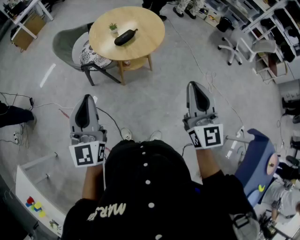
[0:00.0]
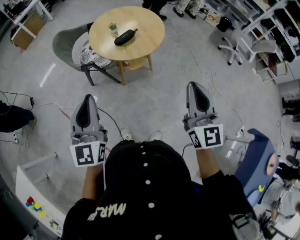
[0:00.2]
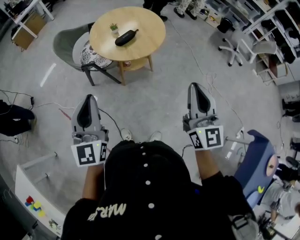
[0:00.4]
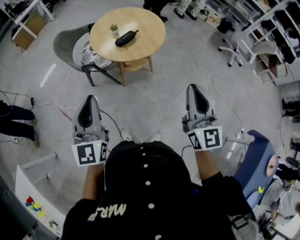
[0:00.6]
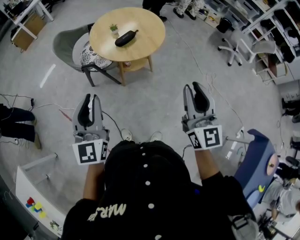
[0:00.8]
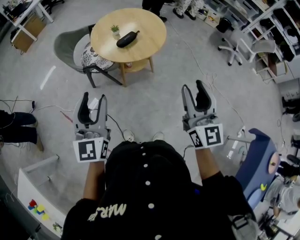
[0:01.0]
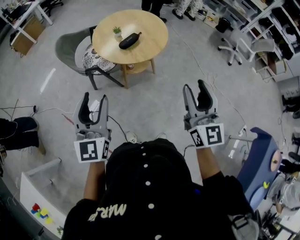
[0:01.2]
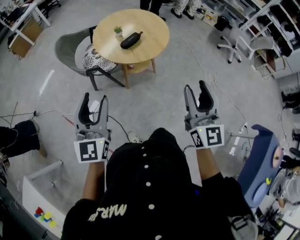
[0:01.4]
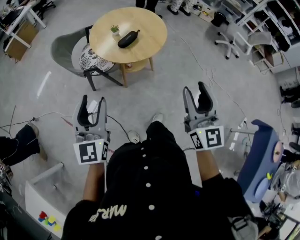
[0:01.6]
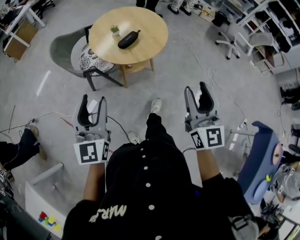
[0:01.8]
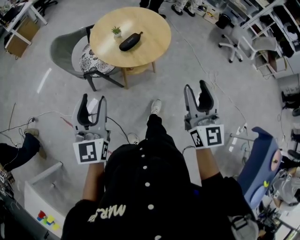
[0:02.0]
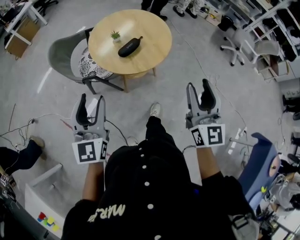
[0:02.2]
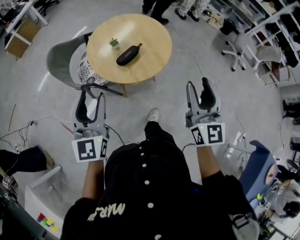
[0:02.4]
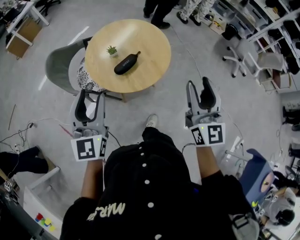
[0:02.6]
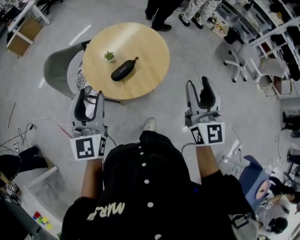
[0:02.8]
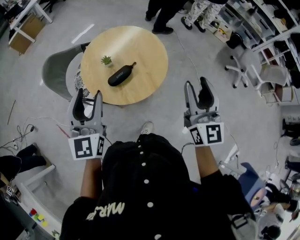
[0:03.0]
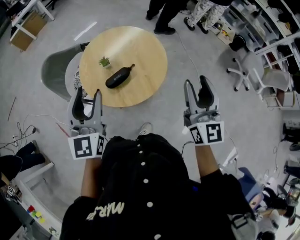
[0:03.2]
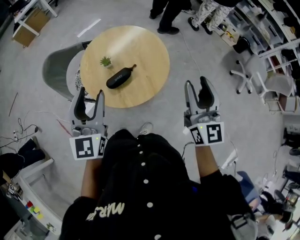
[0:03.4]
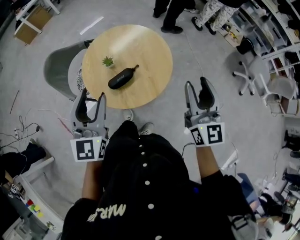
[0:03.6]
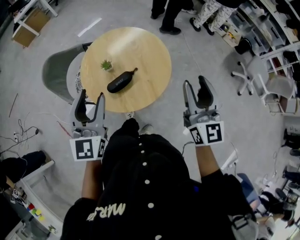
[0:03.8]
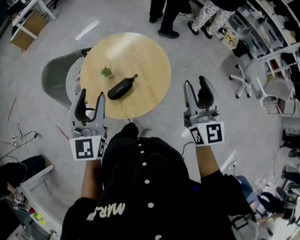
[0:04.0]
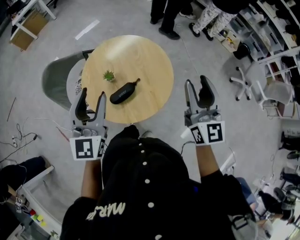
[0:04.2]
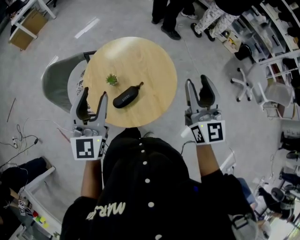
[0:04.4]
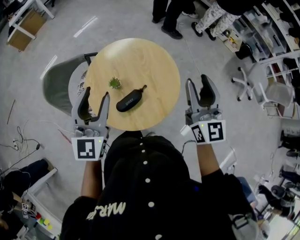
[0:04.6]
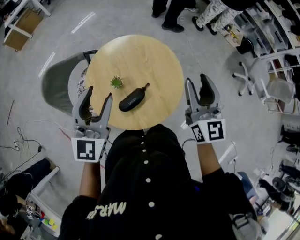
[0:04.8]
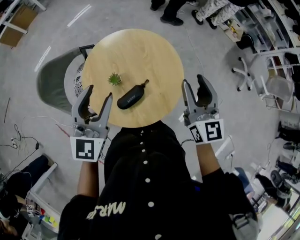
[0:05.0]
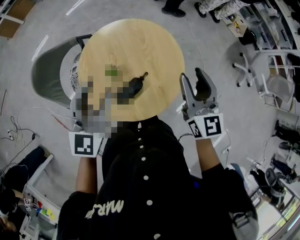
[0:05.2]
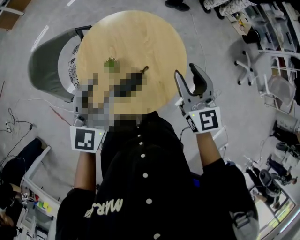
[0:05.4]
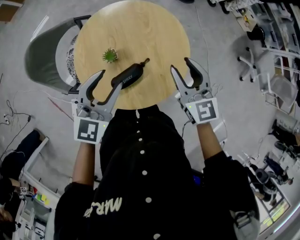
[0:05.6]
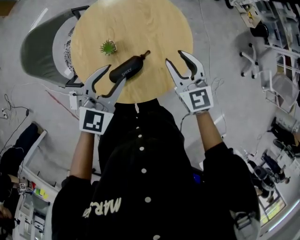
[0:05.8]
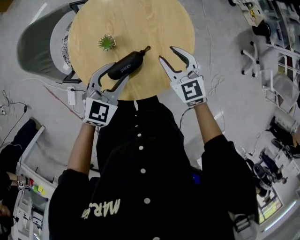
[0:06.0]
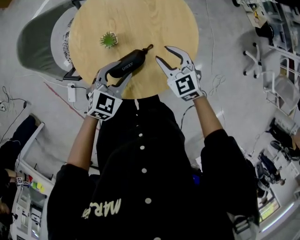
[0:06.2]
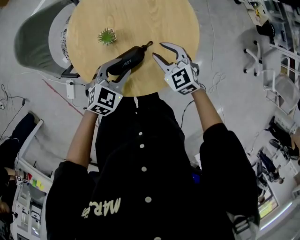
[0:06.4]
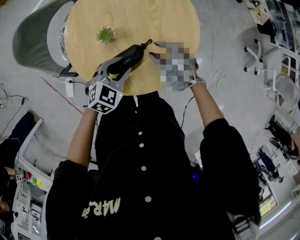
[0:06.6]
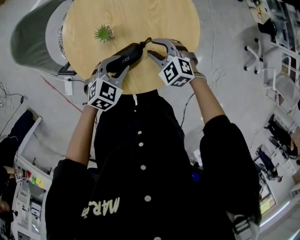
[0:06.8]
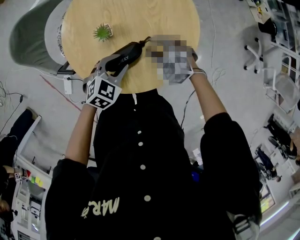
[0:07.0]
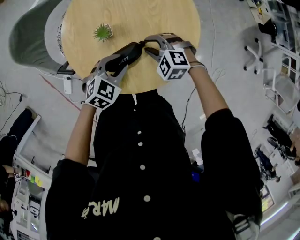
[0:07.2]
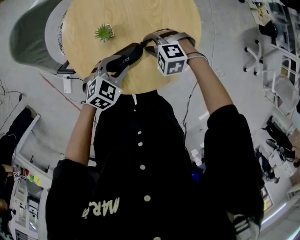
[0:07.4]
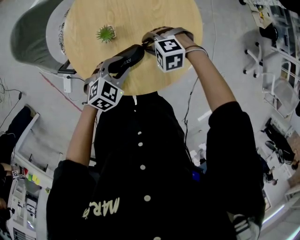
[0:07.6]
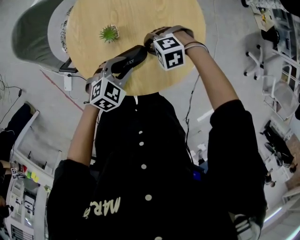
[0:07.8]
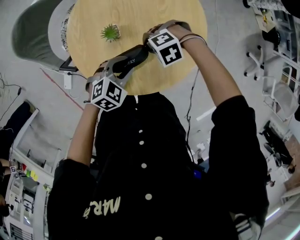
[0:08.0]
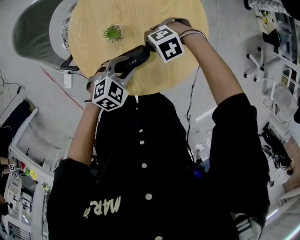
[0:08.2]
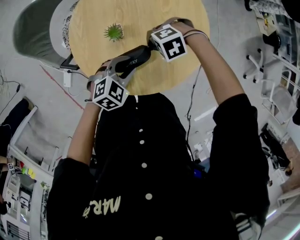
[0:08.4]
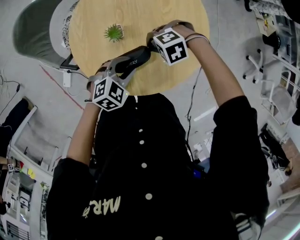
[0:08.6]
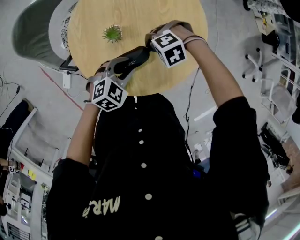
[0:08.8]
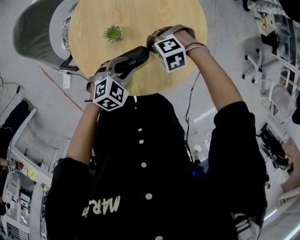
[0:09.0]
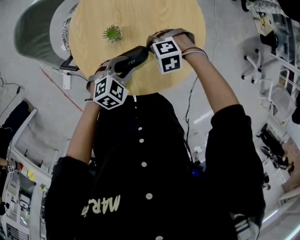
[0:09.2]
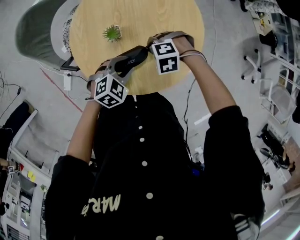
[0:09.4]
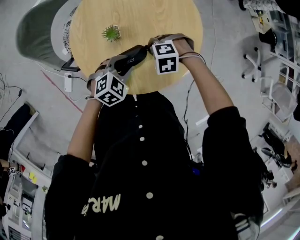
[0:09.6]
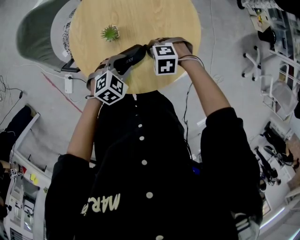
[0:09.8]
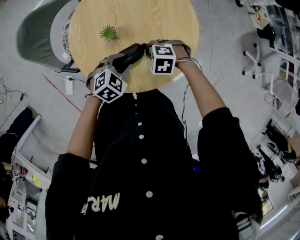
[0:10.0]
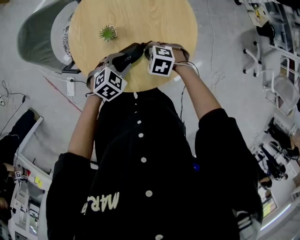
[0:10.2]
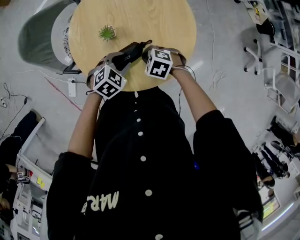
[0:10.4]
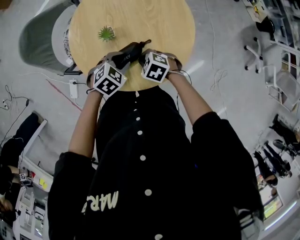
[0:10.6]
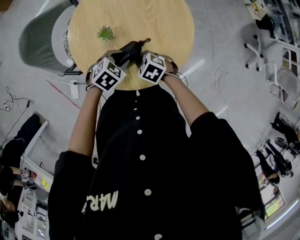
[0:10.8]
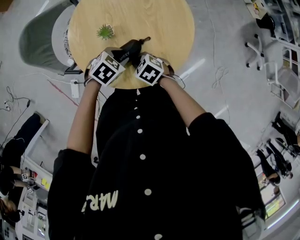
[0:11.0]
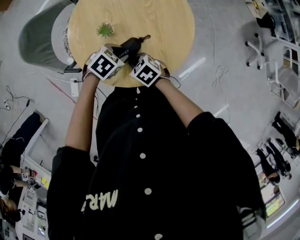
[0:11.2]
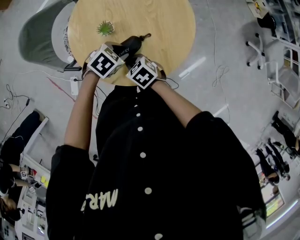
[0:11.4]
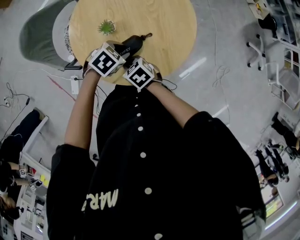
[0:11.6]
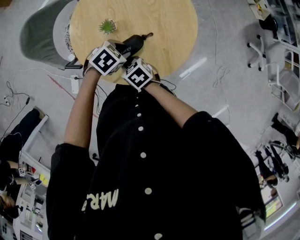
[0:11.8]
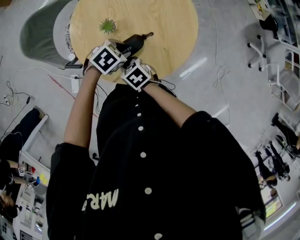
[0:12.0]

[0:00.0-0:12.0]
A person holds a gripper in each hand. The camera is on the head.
0.0 to 1.6 s: The grippers both shift to the left by some 5 cm. The right gripper opens up. The left gripper opens.
1.6 to 3.0 s: The two grippers go roughly 35 cm forward.
3.0 to 4.4 s: The two grippers go roughly 20 cm forward.
4.4 to 6.0 s: Both grippers move downward, some 30 cm. The right gripper points its fingers some 40 degrees further downward; the left gripper turns by about 40 degrees.
6.0 to 7.6 s: The grippers both shift downward by approximately 15 cm. The right gripper tilts its fingers some 30 degrees downward. Meanwhile the left gripper changes its angle by approximately 20 degrees.
7.6 to 9.0 s: The right gripper closes its fingers.
9.0 to 10.4 s: The right gripper shifts by about 5 cm, and rotates around the line of its fingers by roughly 40 degrees, clockwise from behind.
10.4 to 12.0 s: The right gripper moves approximately 10 cm, and changes its angle by approximately 40 degrees.

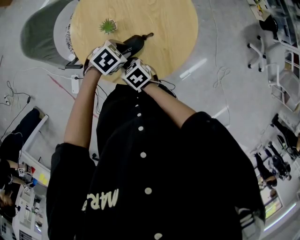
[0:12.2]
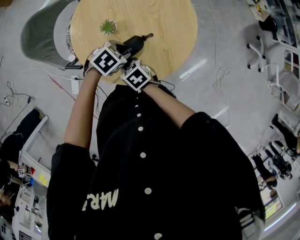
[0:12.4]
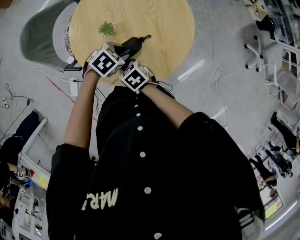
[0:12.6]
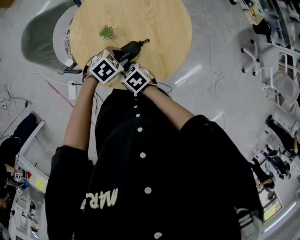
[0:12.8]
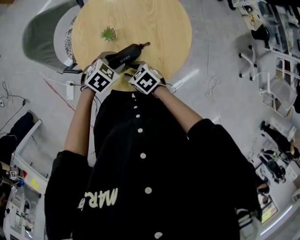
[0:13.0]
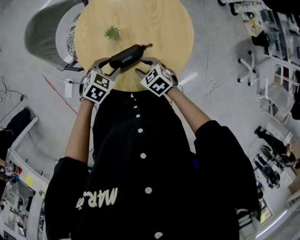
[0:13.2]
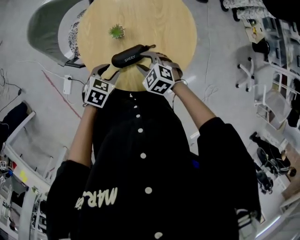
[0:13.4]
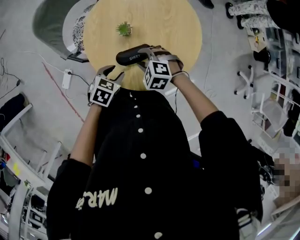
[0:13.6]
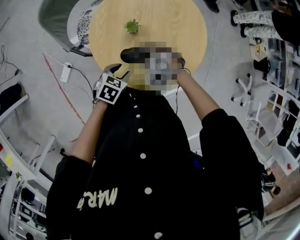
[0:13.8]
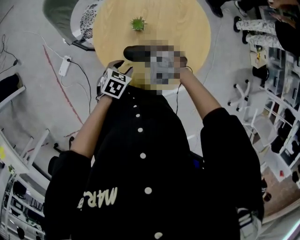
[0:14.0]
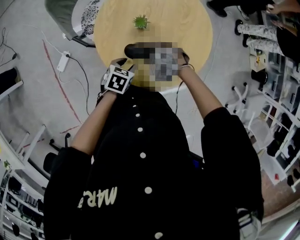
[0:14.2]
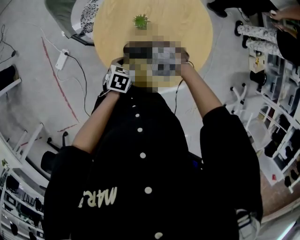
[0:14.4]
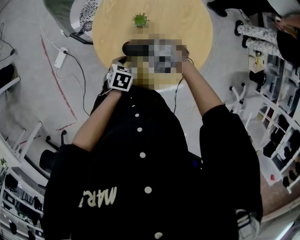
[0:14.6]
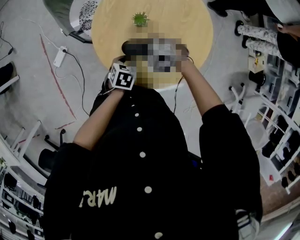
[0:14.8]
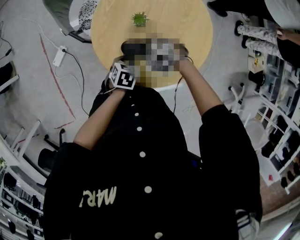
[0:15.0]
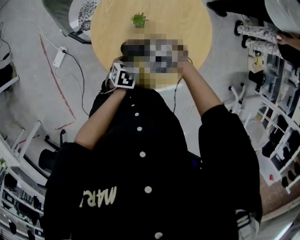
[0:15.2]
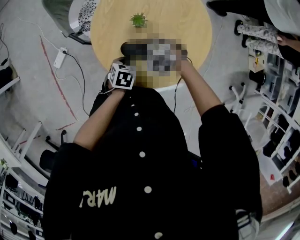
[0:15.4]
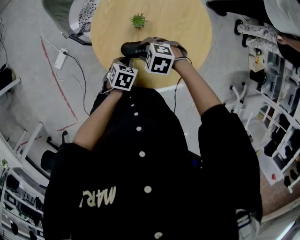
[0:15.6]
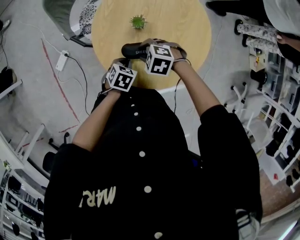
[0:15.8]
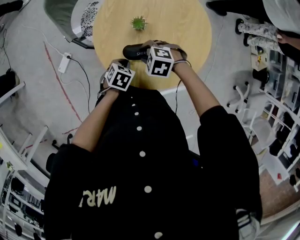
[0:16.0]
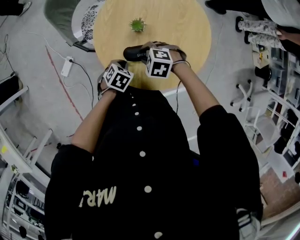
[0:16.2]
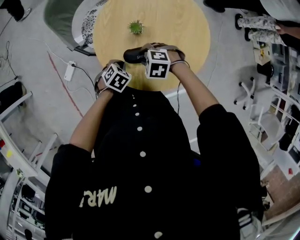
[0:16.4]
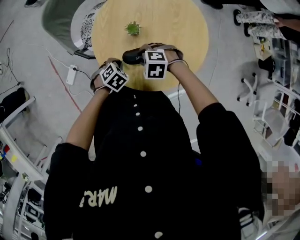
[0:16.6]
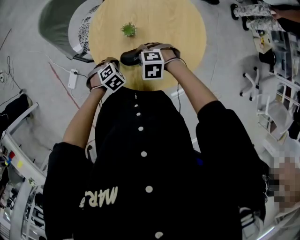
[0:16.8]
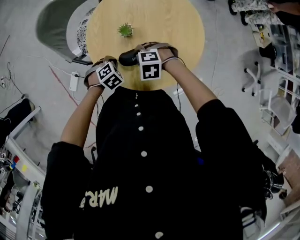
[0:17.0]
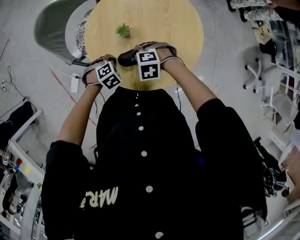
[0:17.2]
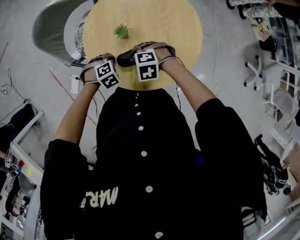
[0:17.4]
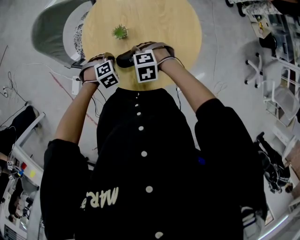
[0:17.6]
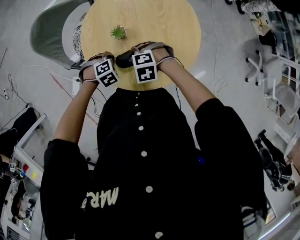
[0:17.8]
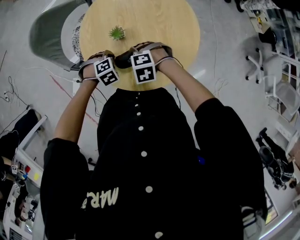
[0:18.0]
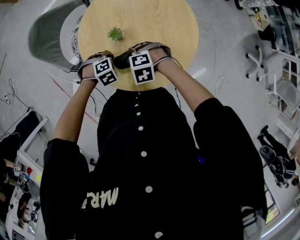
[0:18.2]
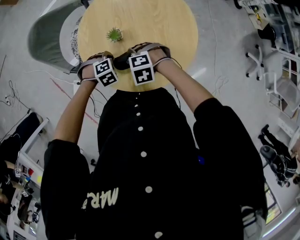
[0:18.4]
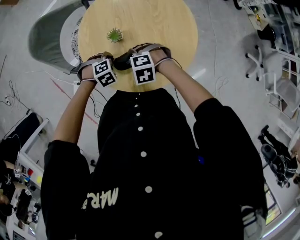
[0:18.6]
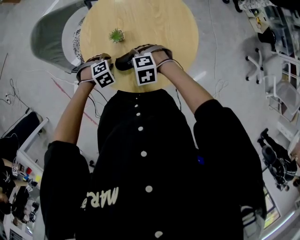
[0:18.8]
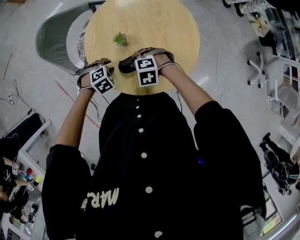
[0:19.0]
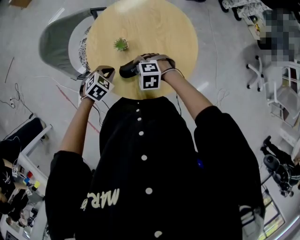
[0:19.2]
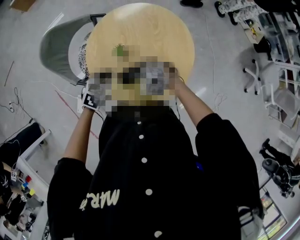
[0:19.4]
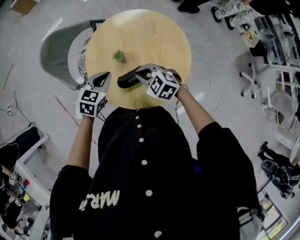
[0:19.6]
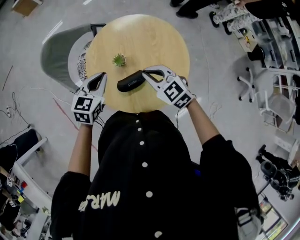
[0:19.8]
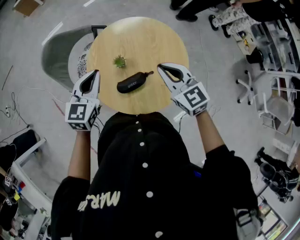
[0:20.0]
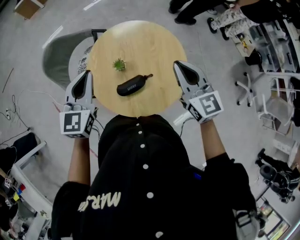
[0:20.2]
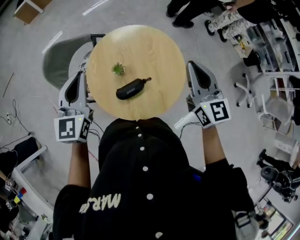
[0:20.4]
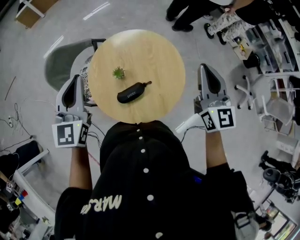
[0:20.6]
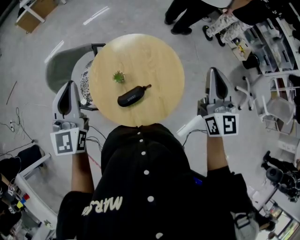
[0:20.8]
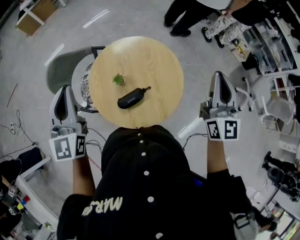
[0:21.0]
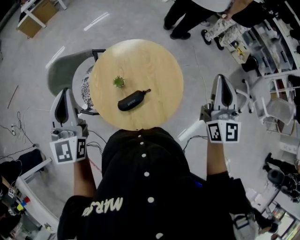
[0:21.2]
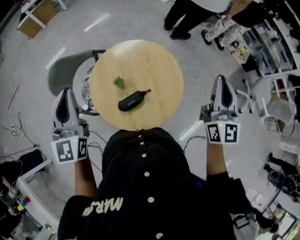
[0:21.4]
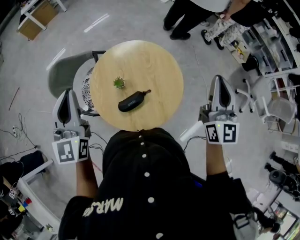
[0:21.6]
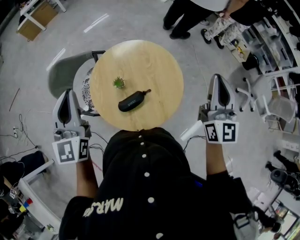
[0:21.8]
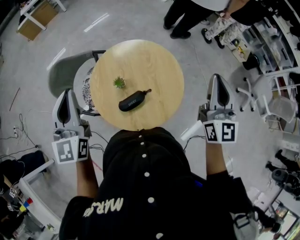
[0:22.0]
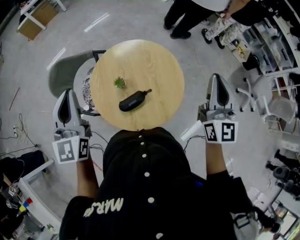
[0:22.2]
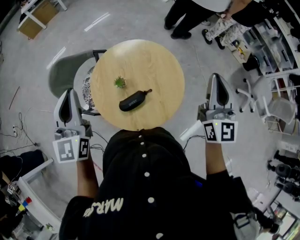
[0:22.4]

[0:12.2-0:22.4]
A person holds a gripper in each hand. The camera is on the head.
12.2 to 13.6 s: The right gripper shifts by approximately 10 cm, rolls counterclockwise, seen from behind, by some 60 degrees, and opens, while the left gripper moves approximately 10 cm, and rotates about 40 degrees.
13.6 to 15.2 s: The right gripper changes its angle by roughly 20 degrees. Meanwhile the left gripper shifts roughly 5 cm downward, rotates approximately 30 degrees, and closes its fingers.
15.2 to 16.6 s: The left gripper moves about 5 cm, and rotates around the line of its fingers by about 40 degrees, clockwise from behind.
16.6 to 18.0 s: The left gripper moves some 5 cm, and swivels approximately 40 degrees.
18.0 to 19.4 s: The right gripper moves upward, about 5 cm, rotates roughly 20 degrees, and closes up. Meanwhile the left gripper shifts some 10 cm upward, rotates some 40 degrees, and opens, then closes again.
19.4 to 21.0 s: The right gripper travels upward and to the right by roughly 50 cm, and tilts its fingers roughly 70 degrees upward. The left gripper moves upward, some 35 cm, and angles its fingers upward, by roughly 50 degrees.
21.0 to 22.4 s: There are only small adjustments of the grippers.

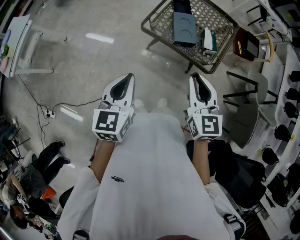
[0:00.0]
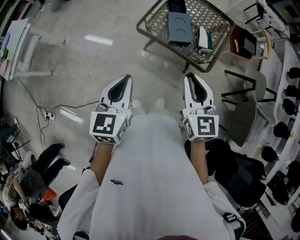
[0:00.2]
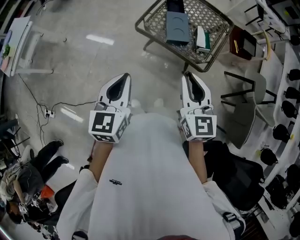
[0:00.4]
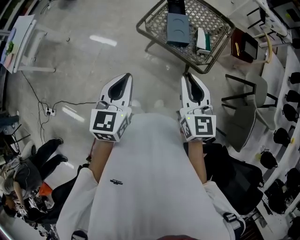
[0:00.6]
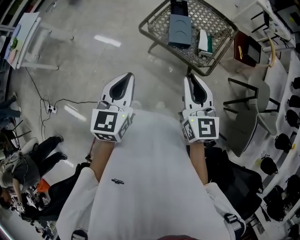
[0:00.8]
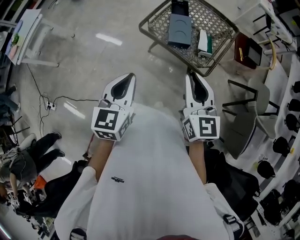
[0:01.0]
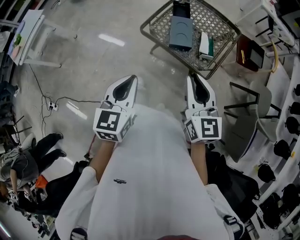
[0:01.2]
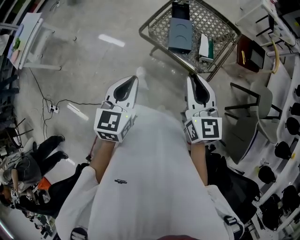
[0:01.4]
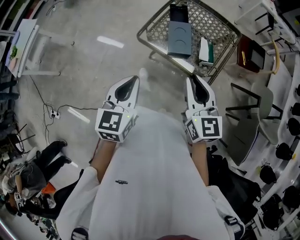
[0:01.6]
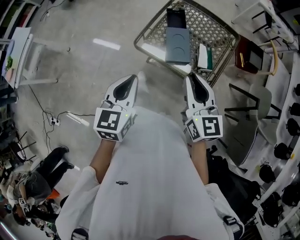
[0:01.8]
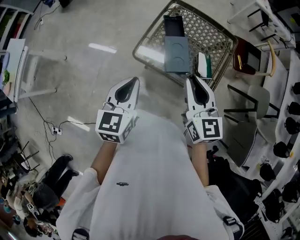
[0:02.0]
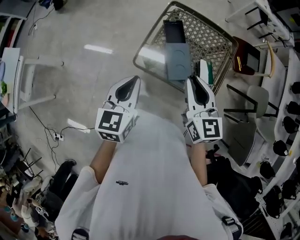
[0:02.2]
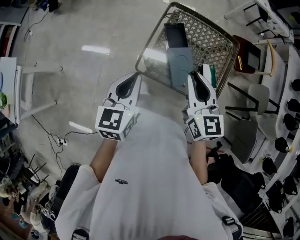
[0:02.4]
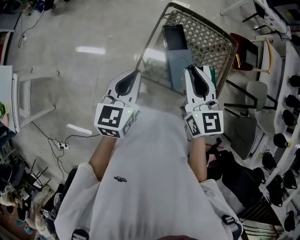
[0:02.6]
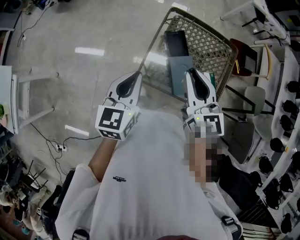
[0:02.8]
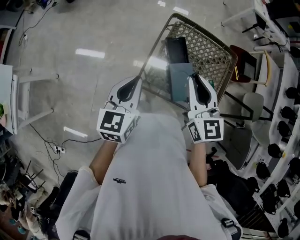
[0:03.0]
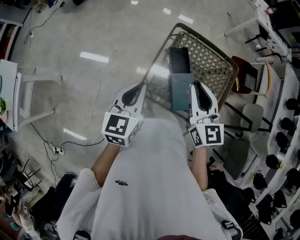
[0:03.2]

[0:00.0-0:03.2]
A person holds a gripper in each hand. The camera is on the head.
0.0 to 1.6 s: Both grippers move to the right and forward, some 10 cm.
1.6 to 3.2 s: The two grippers go about 35 cm forward.
